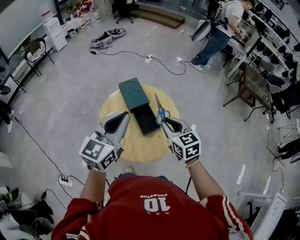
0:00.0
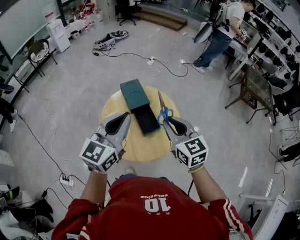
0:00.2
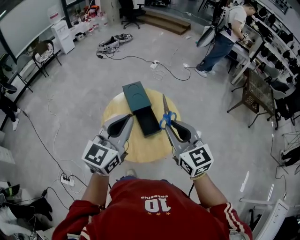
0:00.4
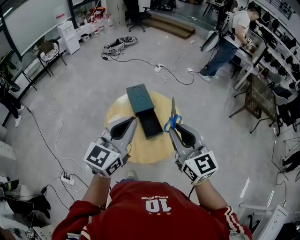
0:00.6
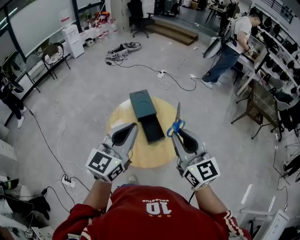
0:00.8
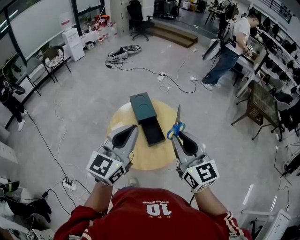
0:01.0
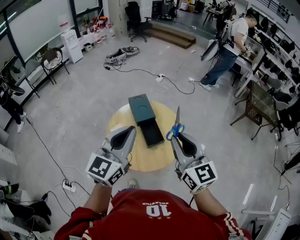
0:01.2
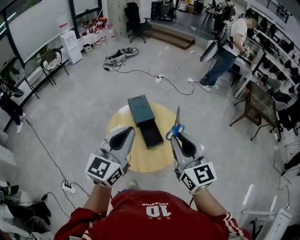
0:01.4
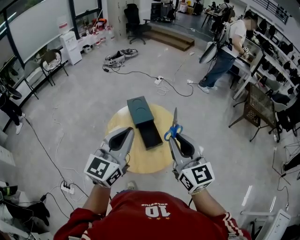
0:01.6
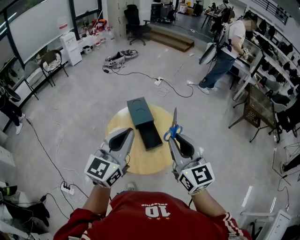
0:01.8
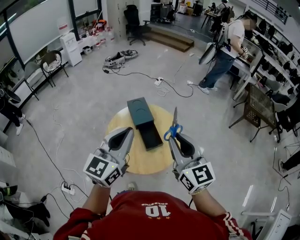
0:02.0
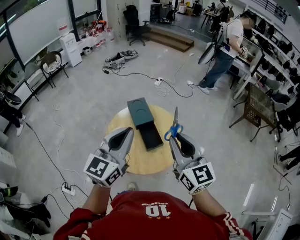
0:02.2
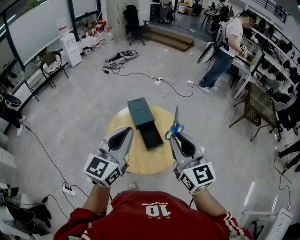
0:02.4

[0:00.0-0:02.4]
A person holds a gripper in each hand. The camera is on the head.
0:00.0 to 0:01.2: The left gripper is displaced upward and backward by approximately 10 cm. Meanwhile the right gripper moves upward and backward, roughly 20 cm, and swivels approximately 30 degrees.
0:01.2 to 0:02.4: The two grippers keep their place.

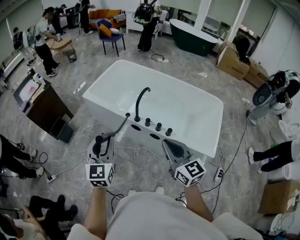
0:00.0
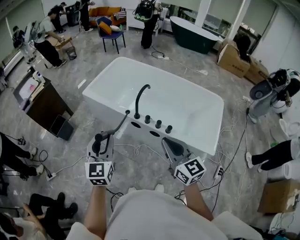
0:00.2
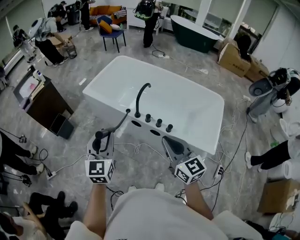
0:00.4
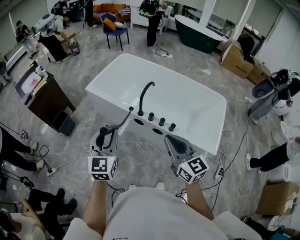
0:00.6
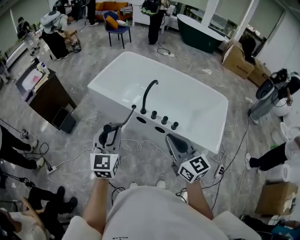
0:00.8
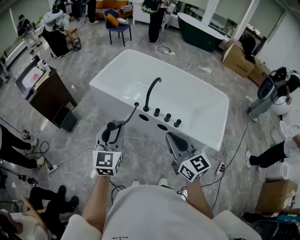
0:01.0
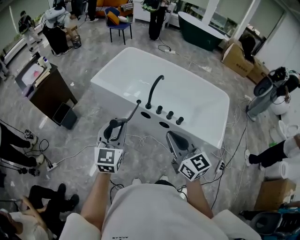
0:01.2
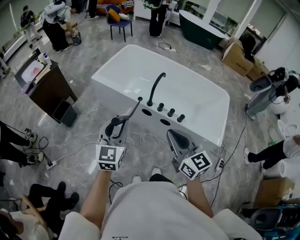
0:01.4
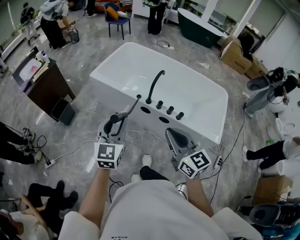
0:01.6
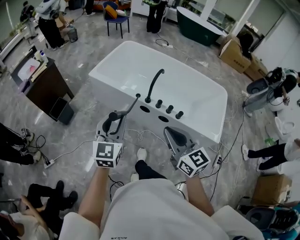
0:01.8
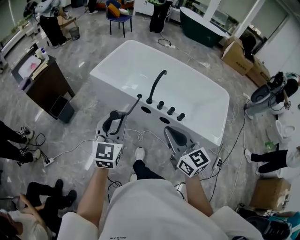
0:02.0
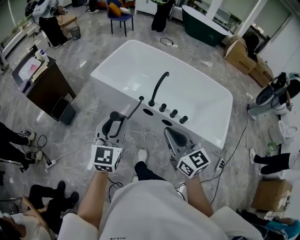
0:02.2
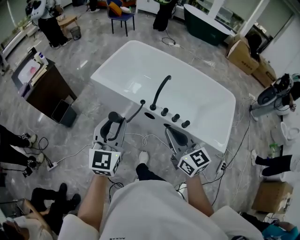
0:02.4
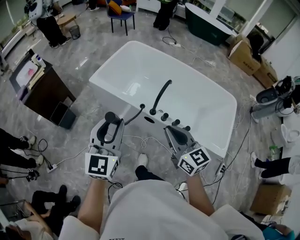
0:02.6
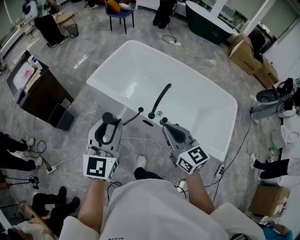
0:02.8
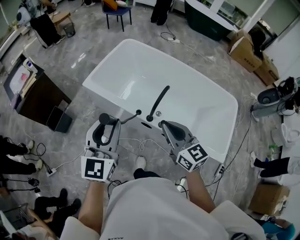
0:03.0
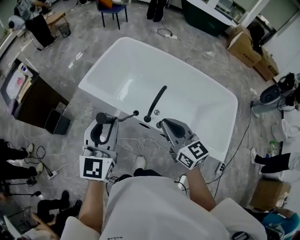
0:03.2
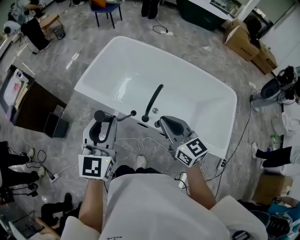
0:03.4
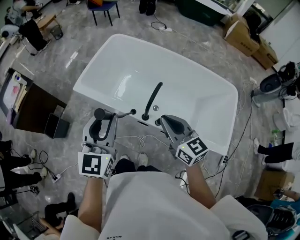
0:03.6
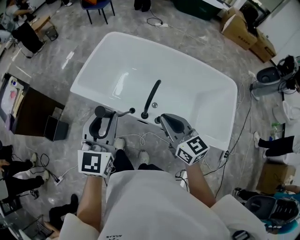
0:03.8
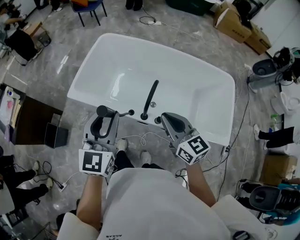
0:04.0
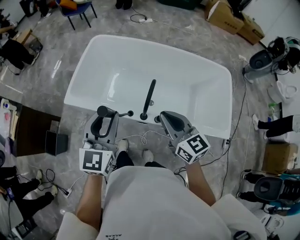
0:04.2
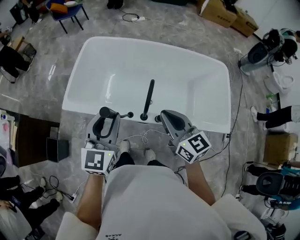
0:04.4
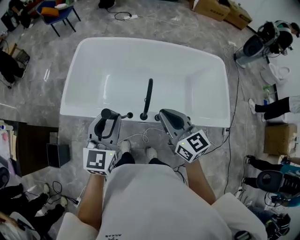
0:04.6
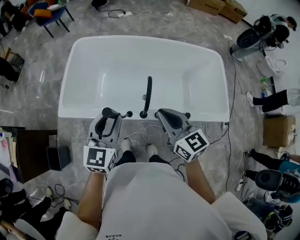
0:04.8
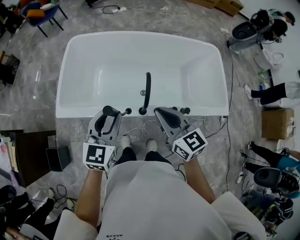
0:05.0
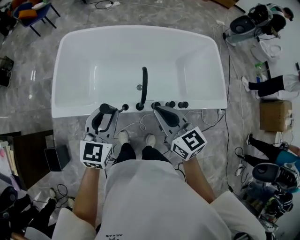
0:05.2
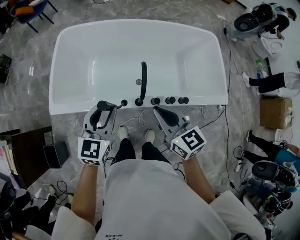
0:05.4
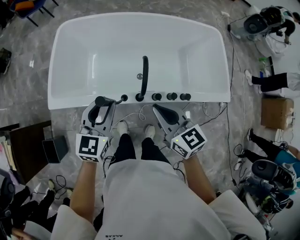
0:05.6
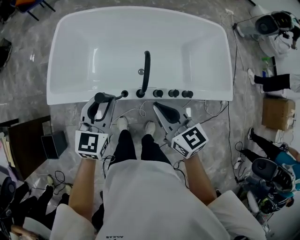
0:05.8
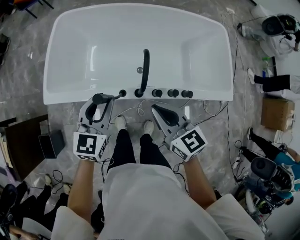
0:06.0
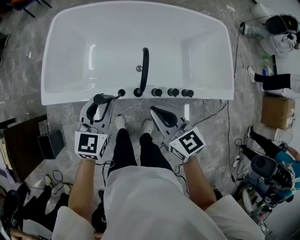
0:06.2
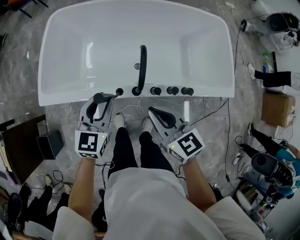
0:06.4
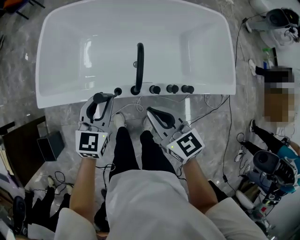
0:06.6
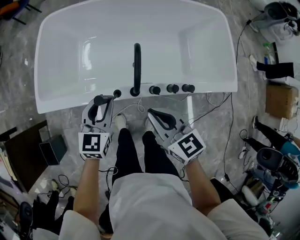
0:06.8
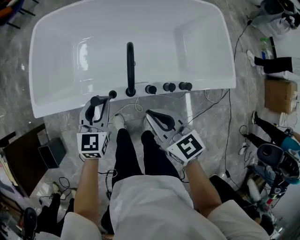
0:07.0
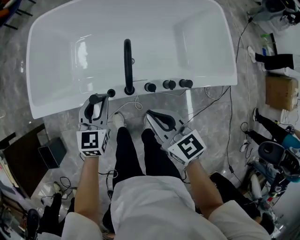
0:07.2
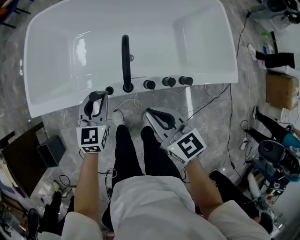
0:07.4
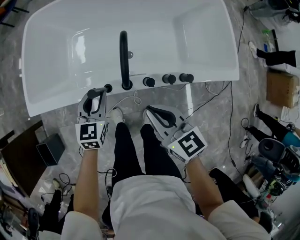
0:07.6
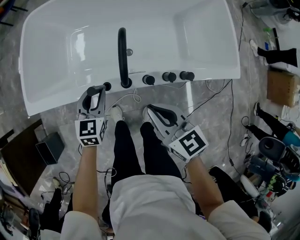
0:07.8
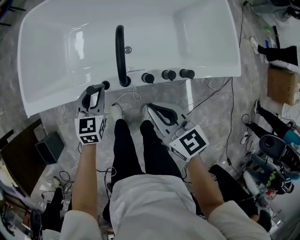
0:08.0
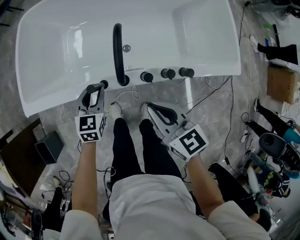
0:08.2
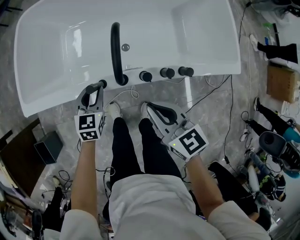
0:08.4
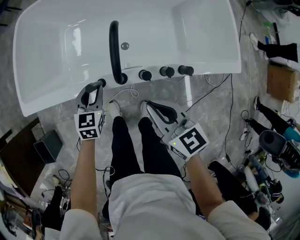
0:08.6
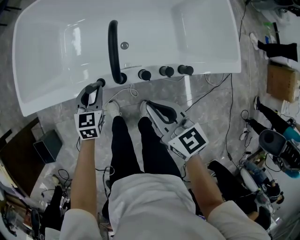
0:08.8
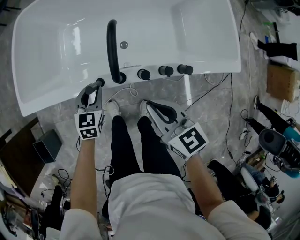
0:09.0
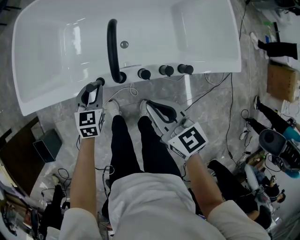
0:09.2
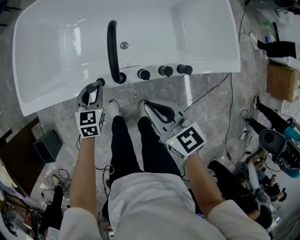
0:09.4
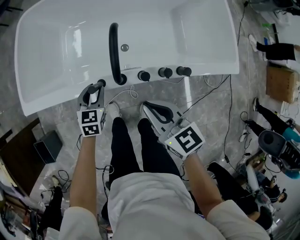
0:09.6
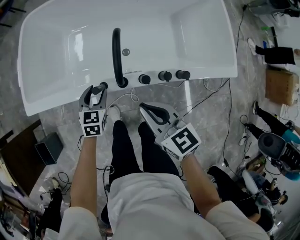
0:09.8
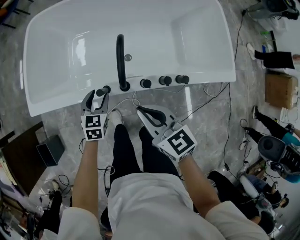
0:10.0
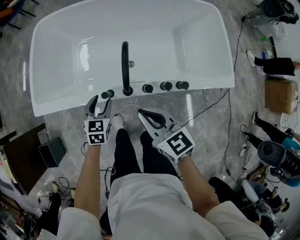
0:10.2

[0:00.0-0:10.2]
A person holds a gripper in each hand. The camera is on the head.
0:00.0 to 0:01.4: The right gripper moves to the left, roughly 10 cm. Meanwhile the left gripper travels to the left by approximately 5 cm.
0:01.4 to 0:03.0: The grippers both shift forward by some 25 cm.
0:03.0 to 0:04.4: The left gripper heads forward and downward, covering roughly 15 cm, and changes its angle by about 20 degrees, while the right gripper goes some 10 cm forward.
0:04.4 to 0:05.8: The right gripper travels downward by approximately 10 cm, while the left gripper heads downward, covering some 10 cm.
0:05.8 to 0:07.2: The left gripper travels downward by roughly 15 cm, while the right gripper is displaced downward by roughly 10 cm.
0:07.2 to 0:08.8: The right gripper changes place by roughly 5 cm, while the left gripper moves downward, roughly 10 cm.
0:08.8 to 0:10.2: The two grippers go approximately 5 cm upward.

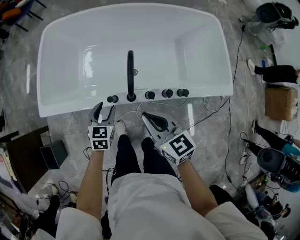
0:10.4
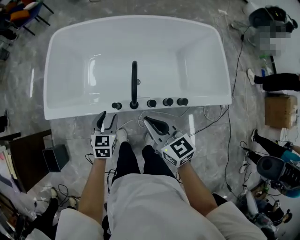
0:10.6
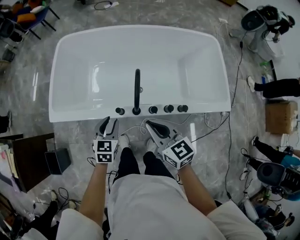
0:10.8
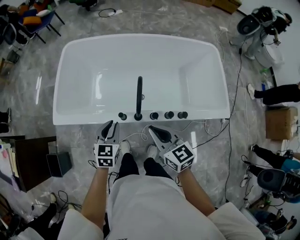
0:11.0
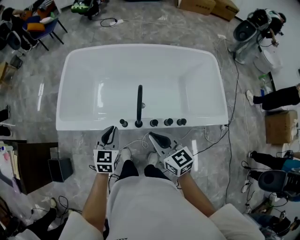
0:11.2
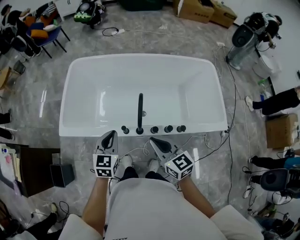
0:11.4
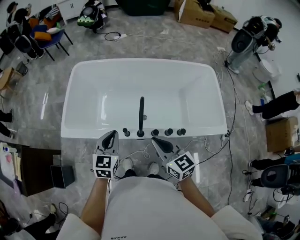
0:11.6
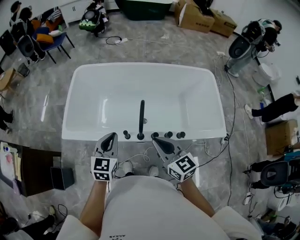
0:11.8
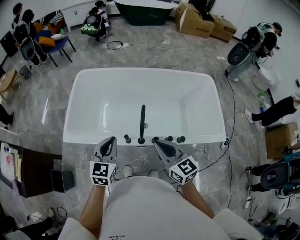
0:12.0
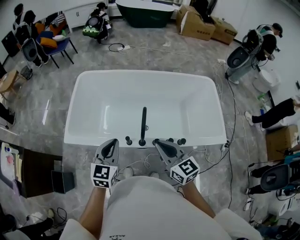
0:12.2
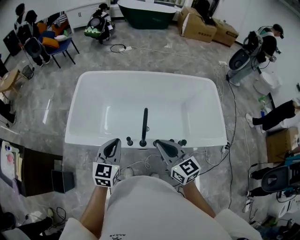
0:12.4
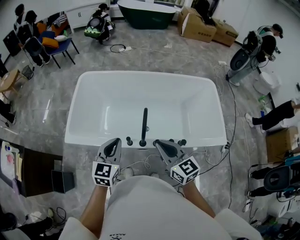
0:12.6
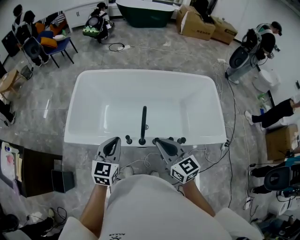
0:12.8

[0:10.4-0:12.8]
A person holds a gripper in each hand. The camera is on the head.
0:10.4 to 0:11.6: The left gripper is displaced upward by some 20 cm, and closes, while the right gripper travels upward by approximately 10 cm.
0:11.6 to 0:12.8: There are only small adjustments of the grippers.

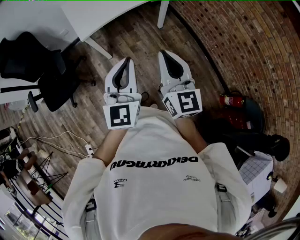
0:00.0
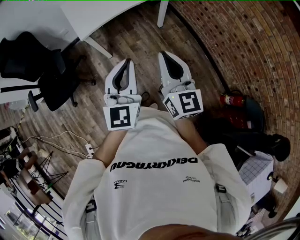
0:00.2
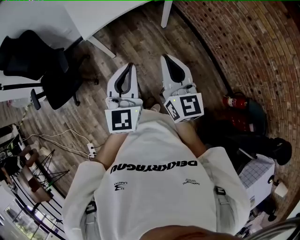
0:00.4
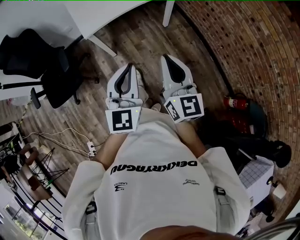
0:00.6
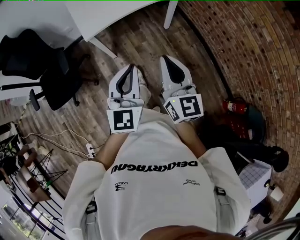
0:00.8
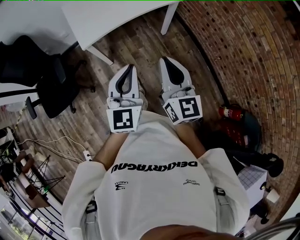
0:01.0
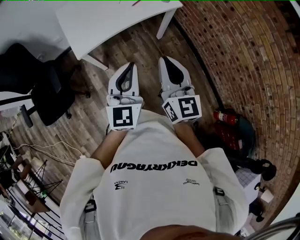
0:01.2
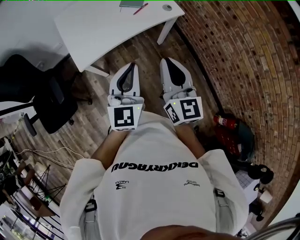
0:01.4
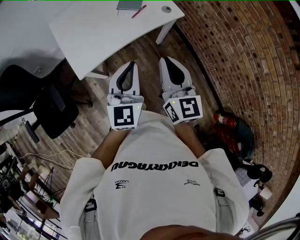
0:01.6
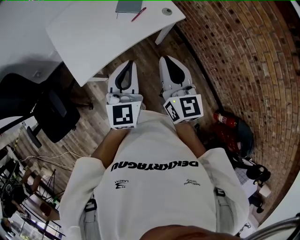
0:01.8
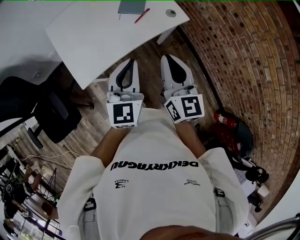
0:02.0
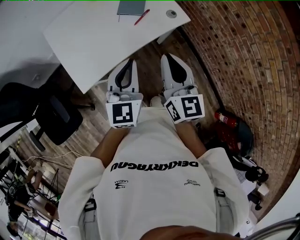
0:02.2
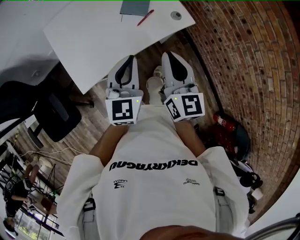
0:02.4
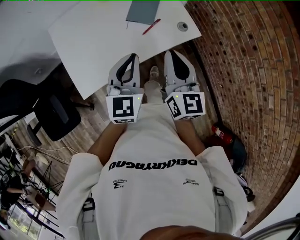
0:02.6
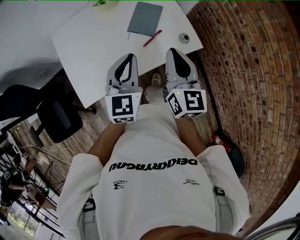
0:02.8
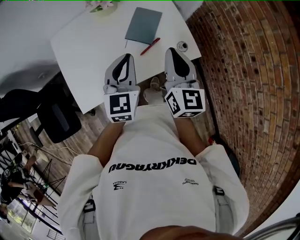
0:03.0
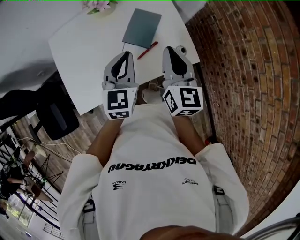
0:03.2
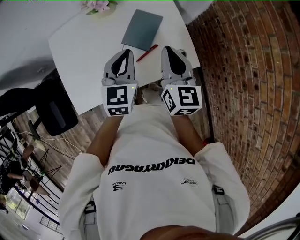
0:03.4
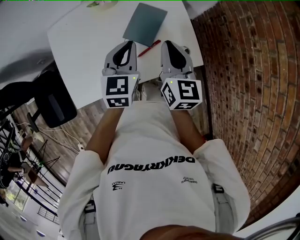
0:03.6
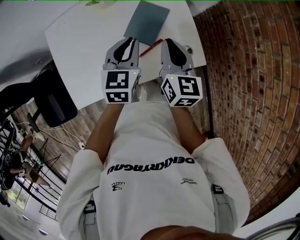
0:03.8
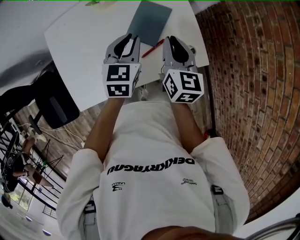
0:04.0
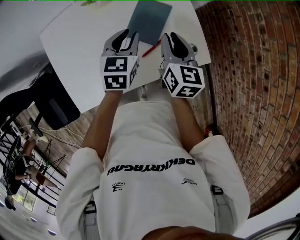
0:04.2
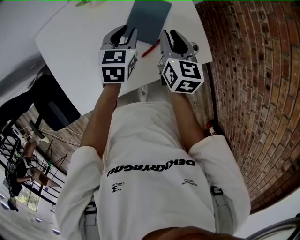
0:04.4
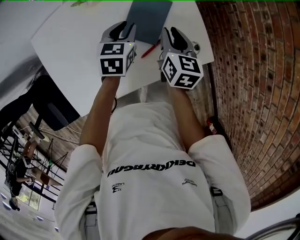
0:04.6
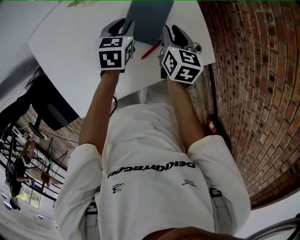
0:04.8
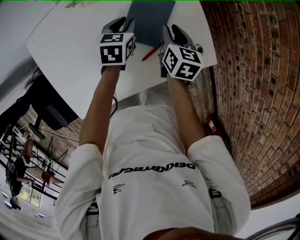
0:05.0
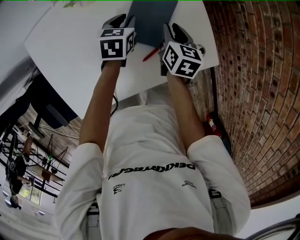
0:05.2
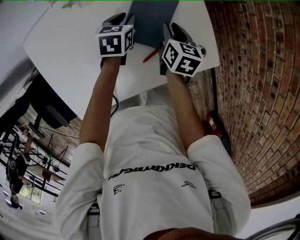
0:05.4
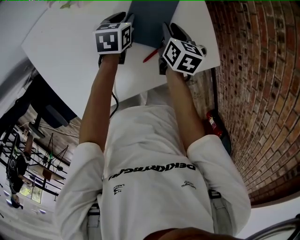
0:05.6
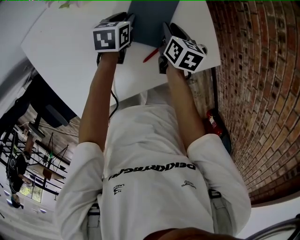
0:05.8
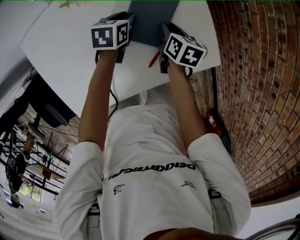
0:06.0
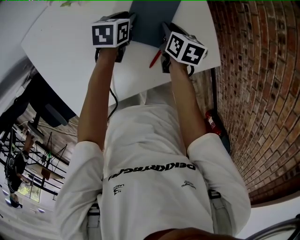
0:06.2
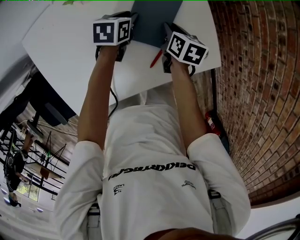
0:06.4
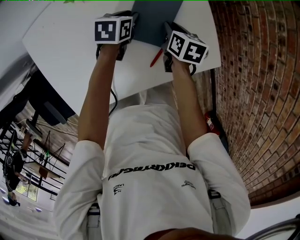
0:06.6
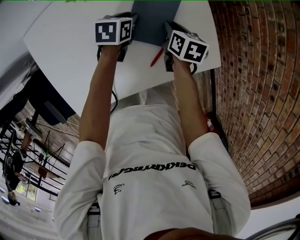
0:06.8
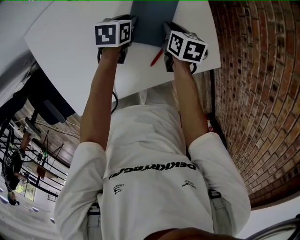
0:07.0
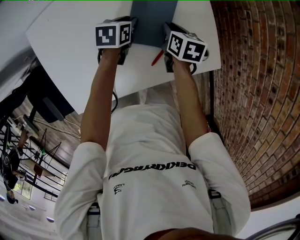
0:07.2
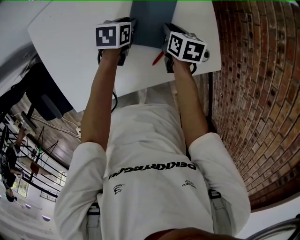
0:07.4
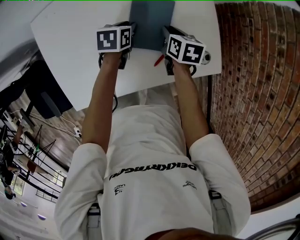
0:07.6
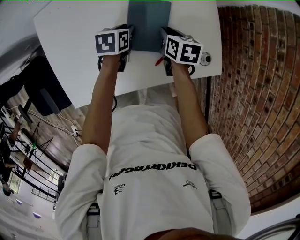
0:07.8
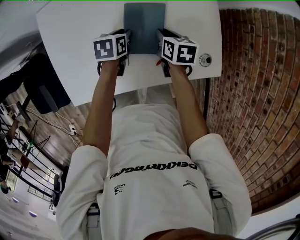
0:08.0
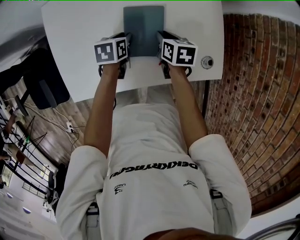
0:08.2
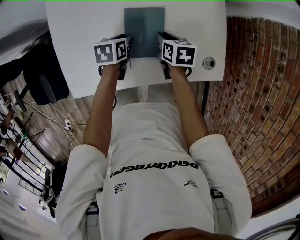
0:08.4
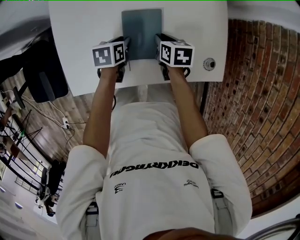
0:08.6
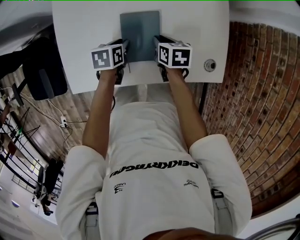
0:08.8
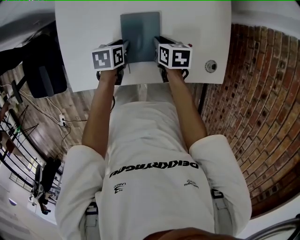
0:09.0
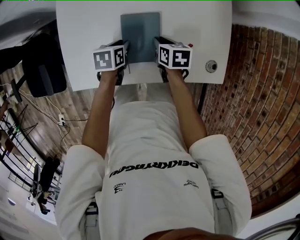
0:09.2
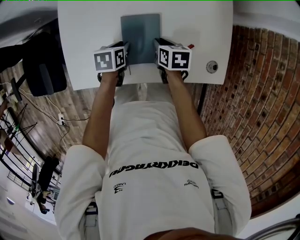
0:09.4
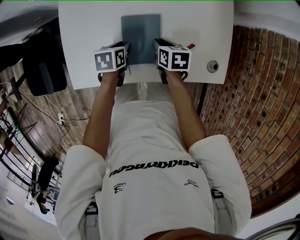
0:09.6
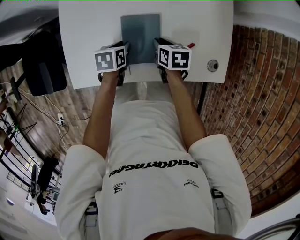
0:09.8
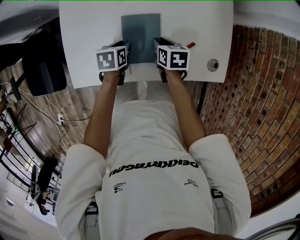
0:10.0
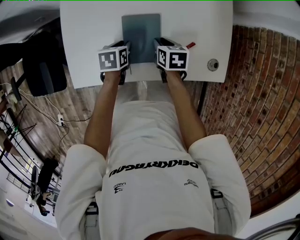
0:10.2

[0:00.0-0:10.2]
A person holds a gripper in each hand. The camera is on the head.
0:00.0 to 0:01.4: The two grippers go about 25 cm forward.
0:01.4 to 0:03.0: Both grippers are carried forward, some 40 cm.
0:03.0 to 0:04.4: The right gripper goes some 25 cm downward and forward, and rotates some 20 degrees. Meanwhile the left gripper heads forward and downward, covering some 25 cm, turns by about 30 degrees, and opens.
0:04.4 to 0:05.8: The left gripper is displaced downward and forward by some 15 cm, and swivels roughly 20 degrees, while the right gripper goes about 15 cm downward, and turns by some 20 degrees.
0:05.8 to 0:07.2: The grippers move only a little.
0:07.2 to 0:08.8: The right gripper shifts some 15 cm to the left and backward, and turns by approximately 20 degrees. Meanwhile the left gripper moves backward and to the left, approximately 20 cm, and rotates about 20 degrees.
0:08.8 to 0:10.2: The grippers make only small movements.
